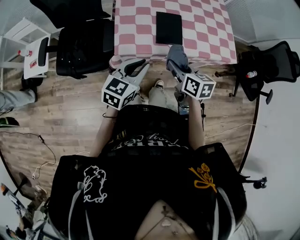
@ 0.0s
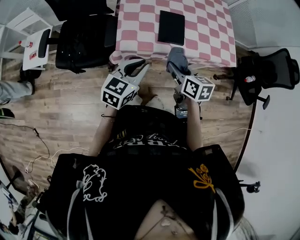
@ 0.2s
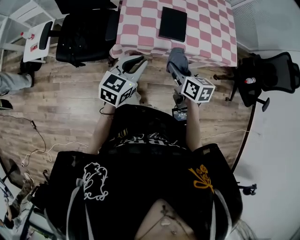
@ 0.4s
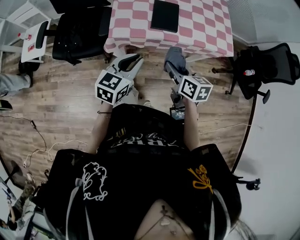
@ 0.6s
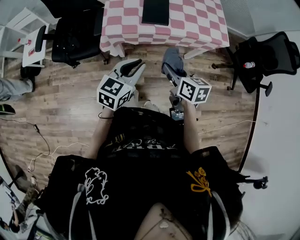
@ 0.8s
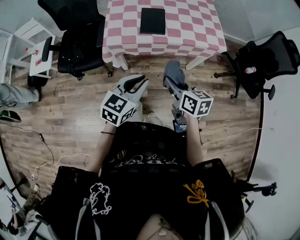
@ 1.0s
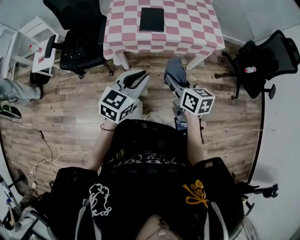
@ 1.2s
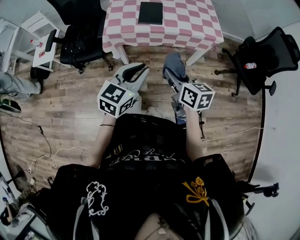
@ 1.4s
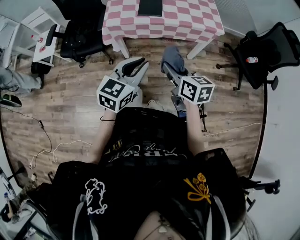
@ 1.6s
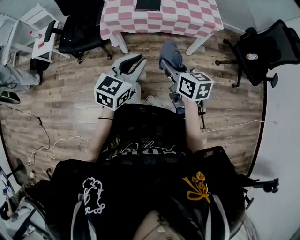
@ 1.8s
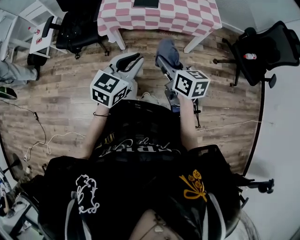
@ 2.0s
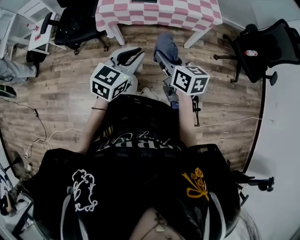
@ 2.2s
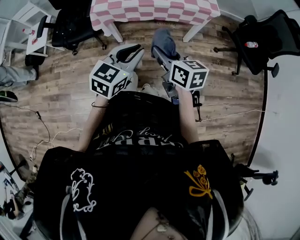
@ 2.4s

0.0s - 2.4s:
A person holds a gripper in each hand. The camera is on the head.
0.0s - 1.2s: The grippers both shift backward and to the right by approximately 25 cm.
1.2s - 2.4s: The right gripper is displaced backward by roughly 5 cm. Meanwhile the left gripper heads to the right and backward, covering some 10 cm.

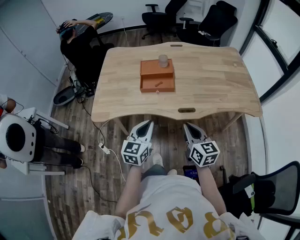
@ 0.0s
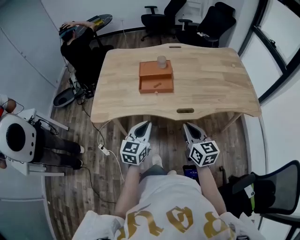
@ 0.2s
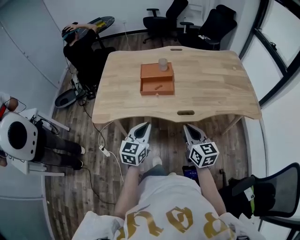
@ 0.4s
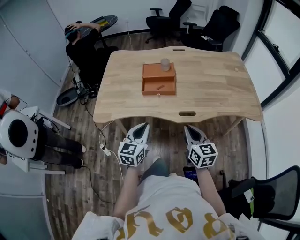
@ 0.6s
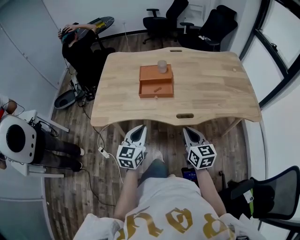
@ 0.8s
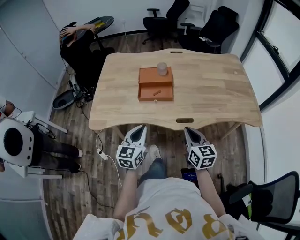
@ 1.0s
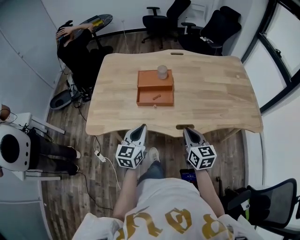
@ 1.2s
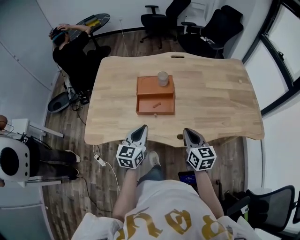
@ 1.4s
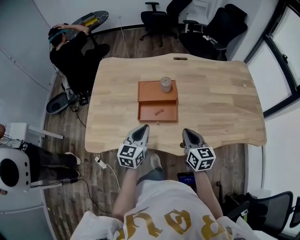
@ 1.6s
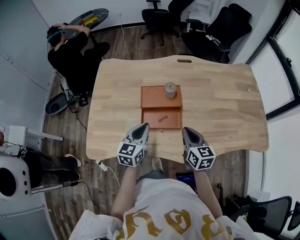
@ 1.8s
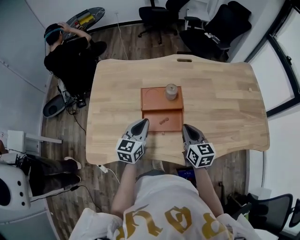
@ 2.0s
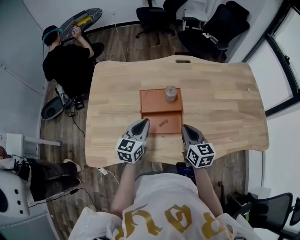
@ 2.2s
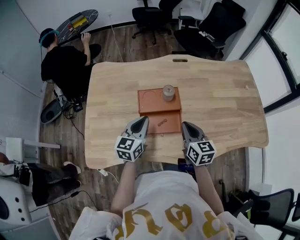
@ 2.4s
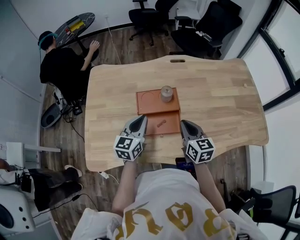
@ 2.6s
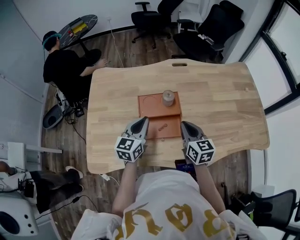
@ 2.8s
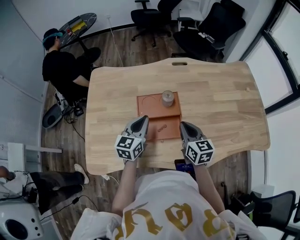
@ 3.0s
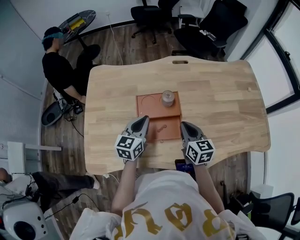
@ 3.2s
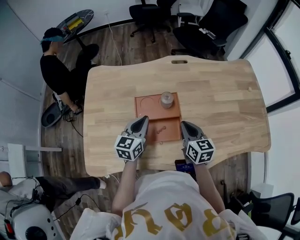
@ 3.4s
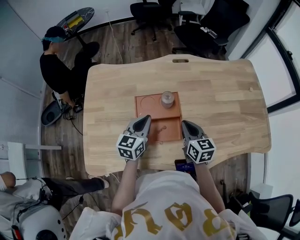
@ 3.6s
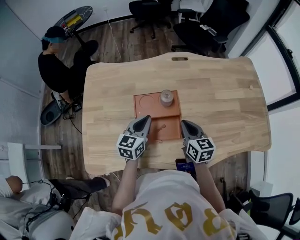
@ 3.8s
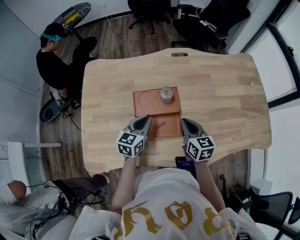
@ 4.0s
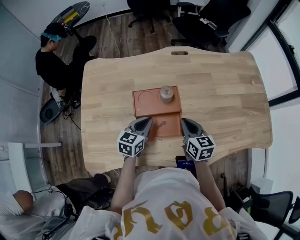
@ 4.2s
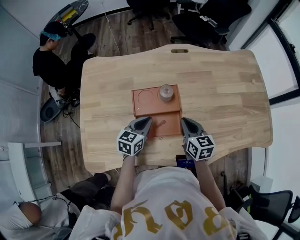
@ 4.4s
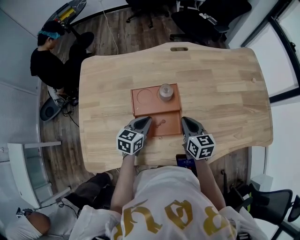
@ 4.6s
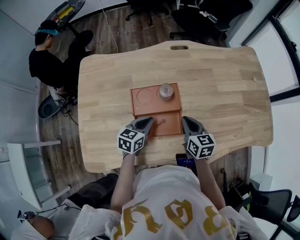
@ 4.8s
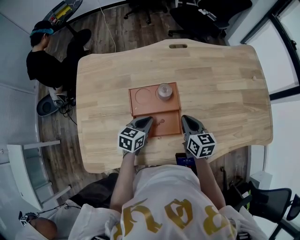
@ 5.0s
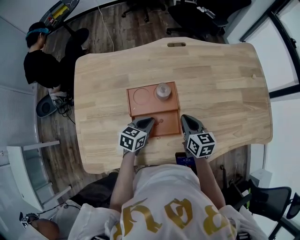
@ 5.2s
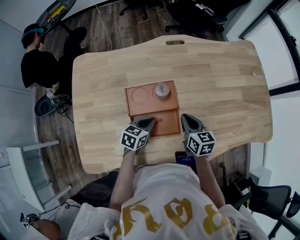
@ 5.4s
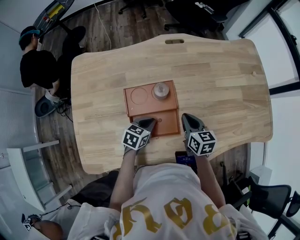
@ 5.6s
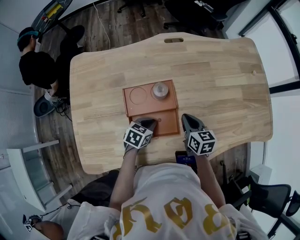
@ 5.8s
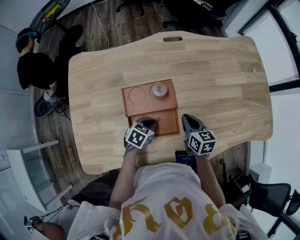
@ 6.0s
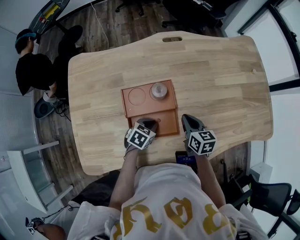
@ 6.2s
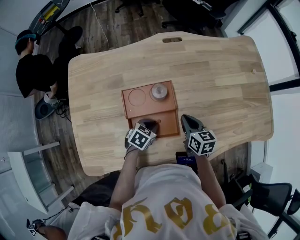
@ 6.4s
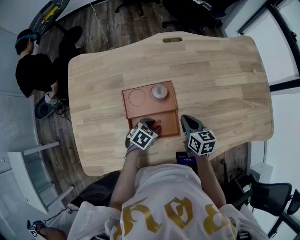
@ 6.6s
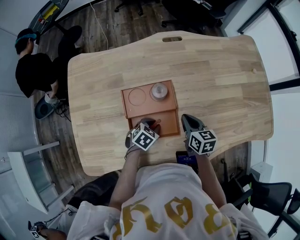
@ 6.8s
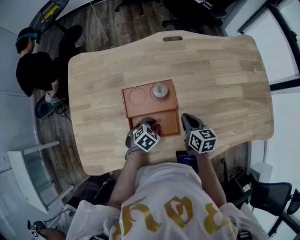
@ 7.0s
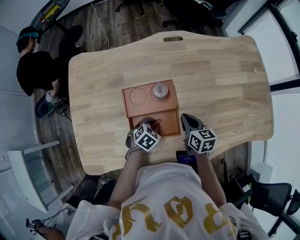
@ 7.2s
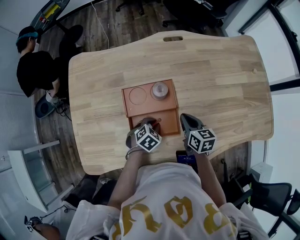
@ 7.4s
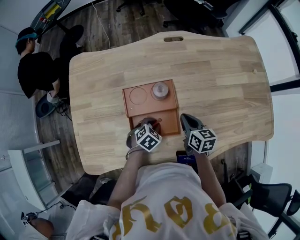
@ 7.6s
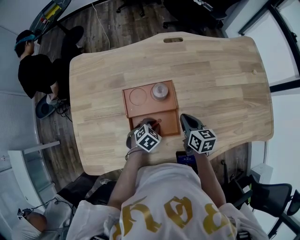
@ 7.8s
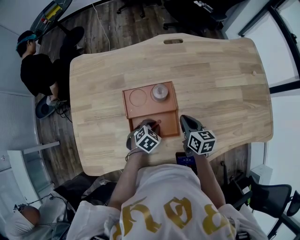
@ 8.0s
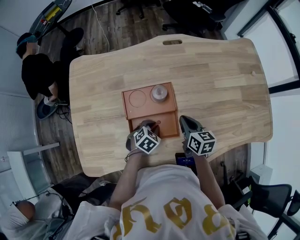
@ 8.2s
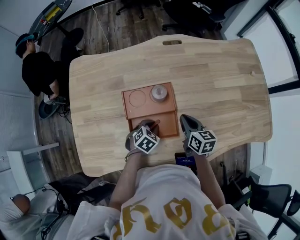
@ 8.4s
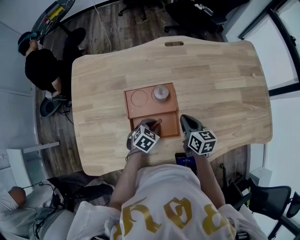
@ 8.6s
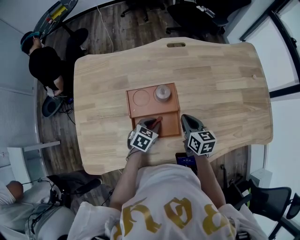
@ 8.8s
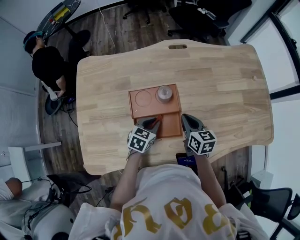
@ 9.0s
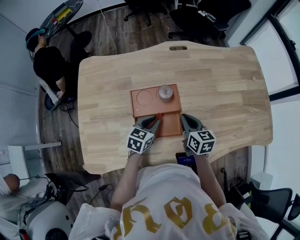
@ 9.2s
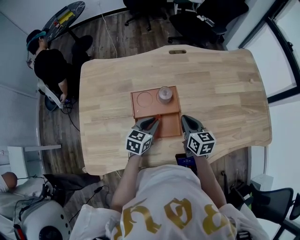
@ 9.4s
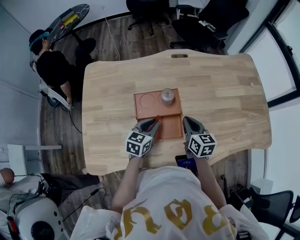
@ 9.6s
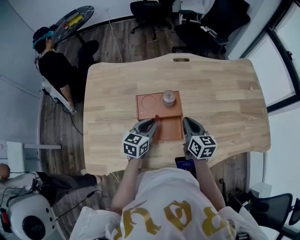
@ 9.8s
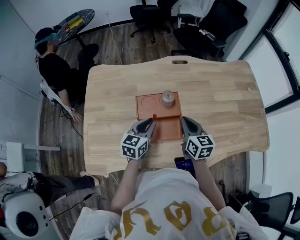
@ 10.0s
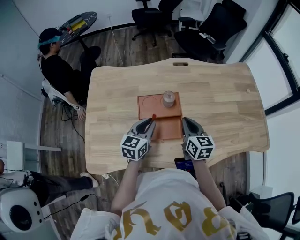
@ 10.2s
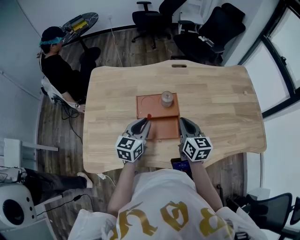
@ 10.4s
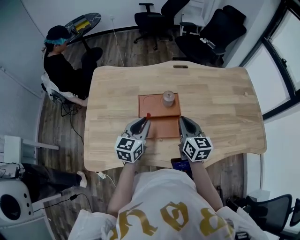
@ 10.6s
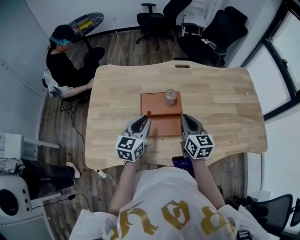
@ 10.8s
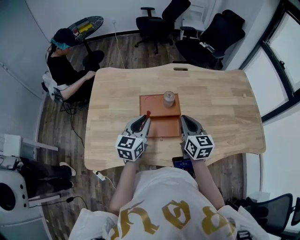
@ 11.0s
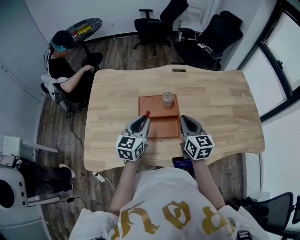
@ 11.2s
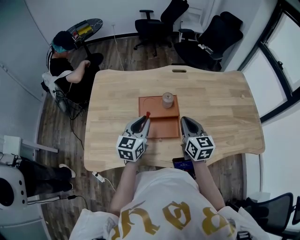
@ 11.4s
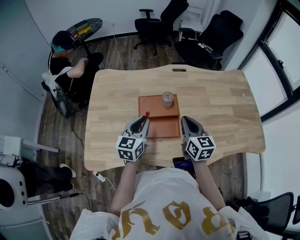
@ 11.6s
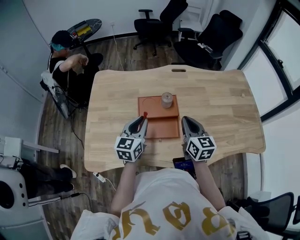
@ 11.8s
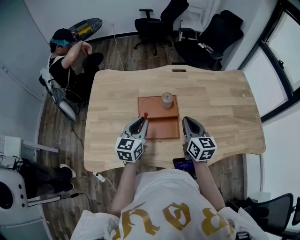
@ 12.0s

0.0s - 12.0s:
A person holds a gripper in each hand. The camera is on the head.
0.0s - 1.6s: Both grippers move forward, approximately 25 cm.
1.6s - 3.0s: Both grippers move forward, about 15 cm.
3.0s - 4.4s: The right gripper shifts some 5 cm downward; the left gripper goes approximately 10 cm downward.
4.4s - 6.0s: The right gripper moves downward, approximately 5 cm, while the left gripper moves downward and to the right, roughly 10 cm, and turns by roughly 30 degrees.
7.6s - 9.0s: The left gripper moves upward, approximately 5 cm, and turns by about 30 degrees.
9.0s - 10.4s: The right gripper heads upward and backward, covering some 10 cm, while the left gripper is displaced upward by some 15 cm, and swivels approximately 30 degrees.
10.4s - 12.0s: The grippers stay close to where they were, moving slightly.

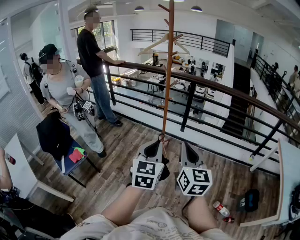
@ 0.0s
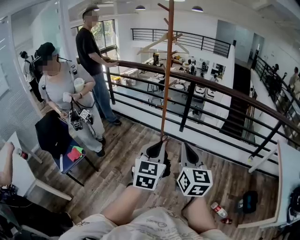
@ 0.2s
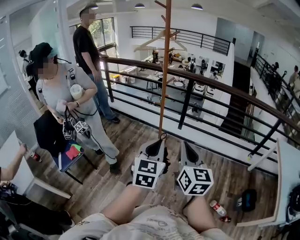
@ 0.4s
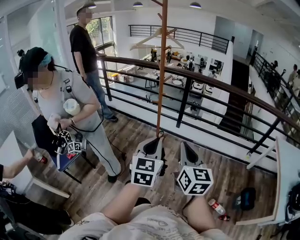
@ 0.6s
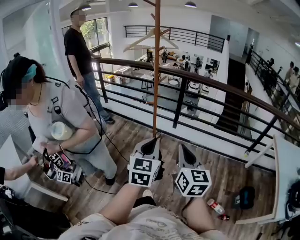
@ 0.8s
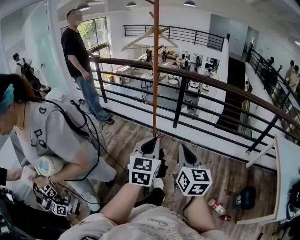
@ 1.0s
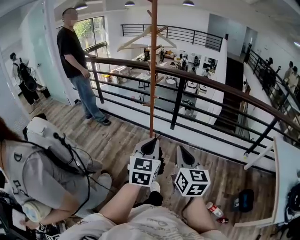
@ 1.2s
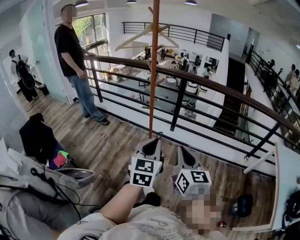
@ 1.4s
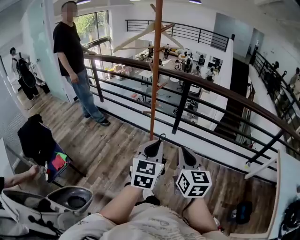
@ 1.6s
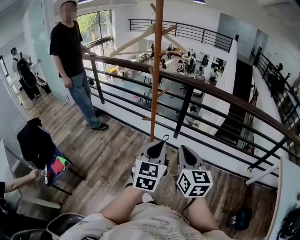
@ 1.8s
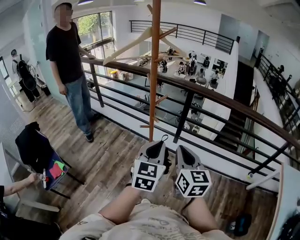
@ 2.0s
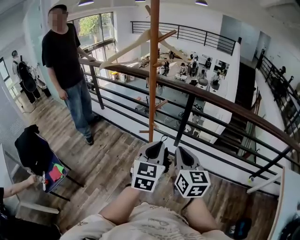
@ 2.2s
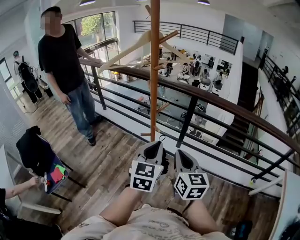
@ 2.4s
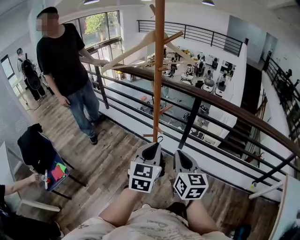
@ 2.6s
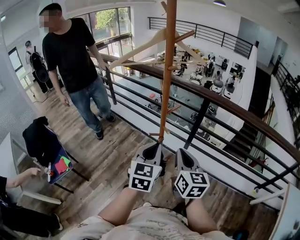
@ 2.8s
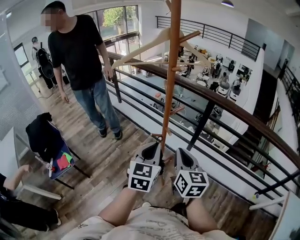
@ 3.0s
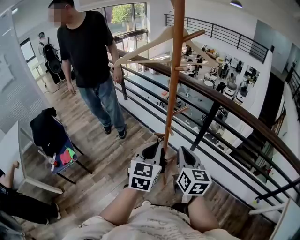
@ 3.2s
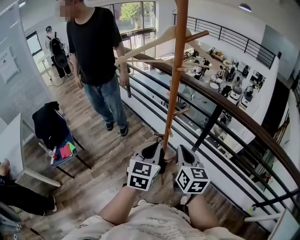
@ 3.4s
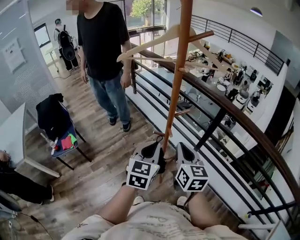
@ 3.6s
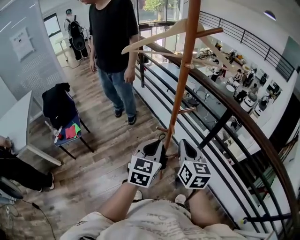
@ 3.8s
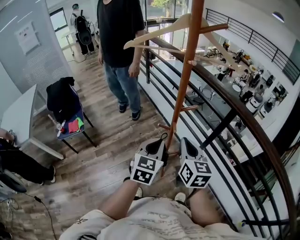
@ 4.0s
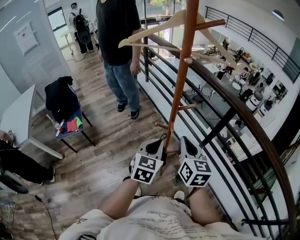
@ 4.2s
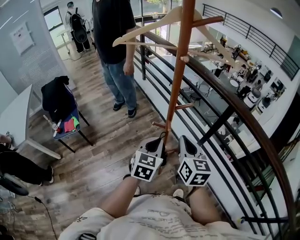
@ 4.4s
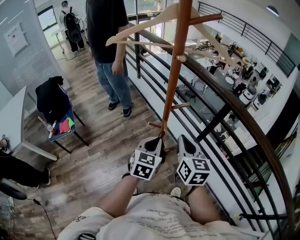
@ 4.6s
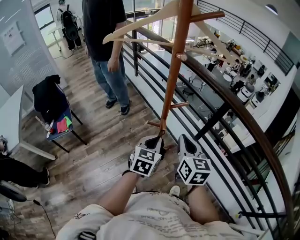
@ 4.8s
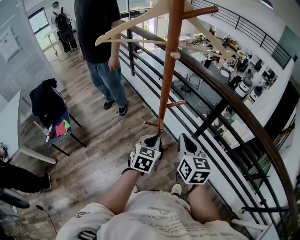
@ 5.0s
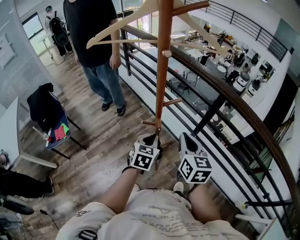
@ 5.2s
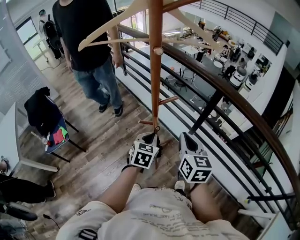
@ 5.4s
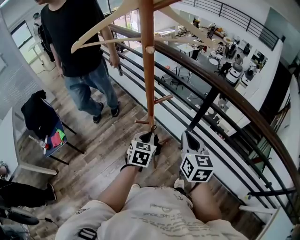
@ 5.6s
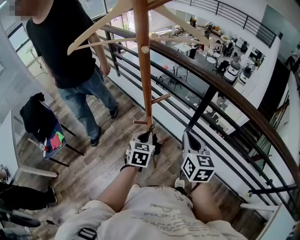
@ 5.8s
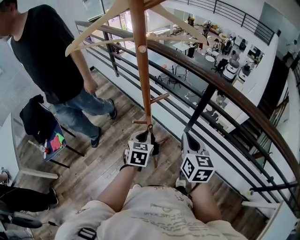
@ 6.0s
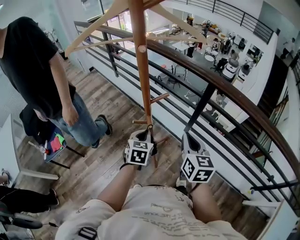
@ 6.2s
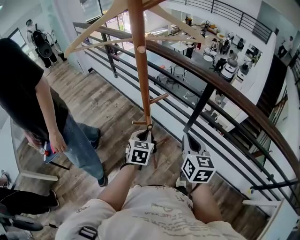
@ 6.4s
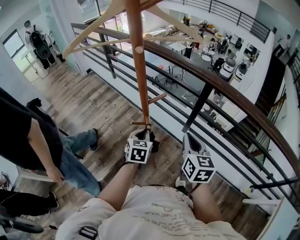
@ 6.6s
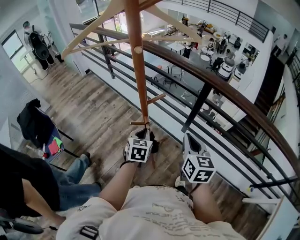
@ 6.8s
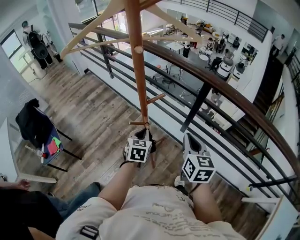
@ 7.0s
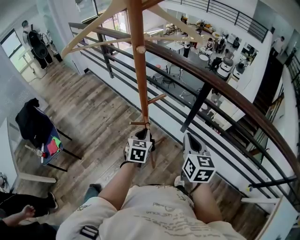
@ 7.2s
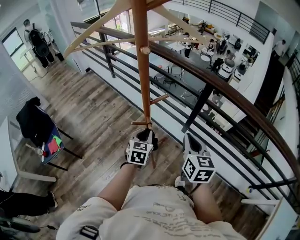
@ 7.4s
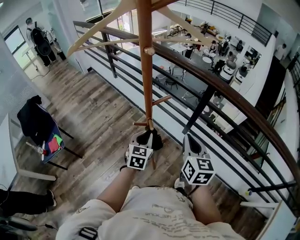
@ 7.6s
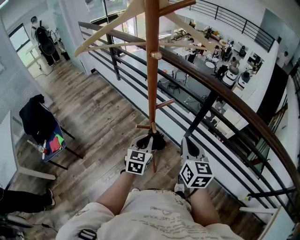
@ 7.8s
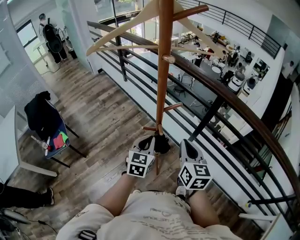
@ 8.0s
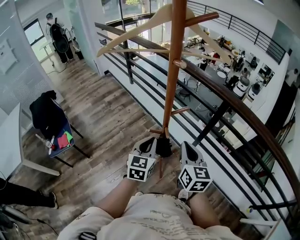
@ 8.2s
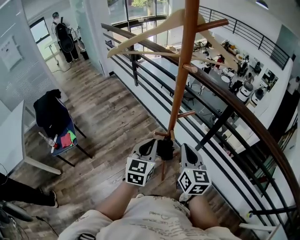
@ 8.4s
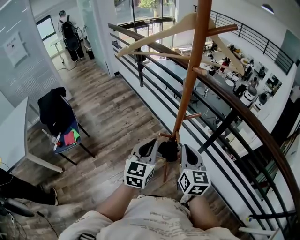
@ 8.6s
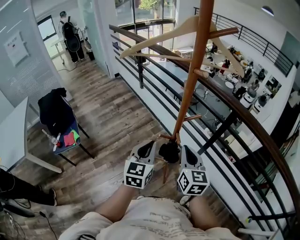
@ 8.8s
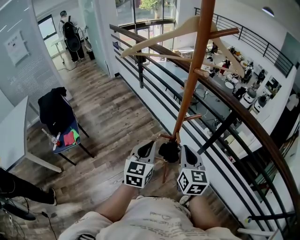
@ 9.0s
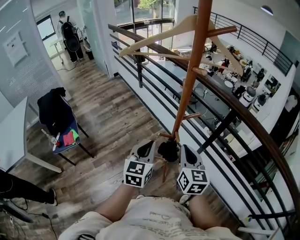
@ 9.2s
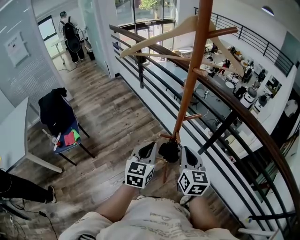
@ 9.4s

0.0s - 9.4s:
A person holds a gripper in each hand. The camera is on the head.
0.0s - 1.6s: The two grippers go approximately 20 cm forward.
1.6s - 3.2s: The grippers both shift forward by about 25 cm.
3.2s - 4.8s: The right gripper moves forward and to the right, some 10 cm, while the left gripper travels downward, to the right and forward by approximately 15 cm.
4.8s - 6.2s: The left gripper travels downward by approximately 5 cm; the right gripper shifts some 5 cm to the right.
6.2s - 7.8s: The grippers make only small movements.
7.8s - 9.4s: The right gripper heads to the left, covering some 10 cm. Meanwhile the left gripper is displaced upward and to the left by approximately 10 cm.
